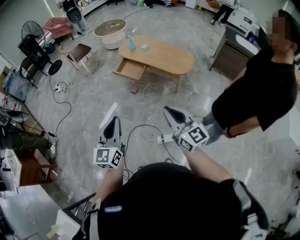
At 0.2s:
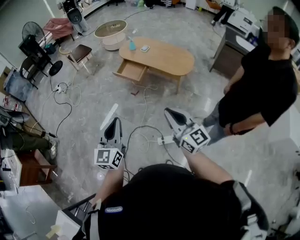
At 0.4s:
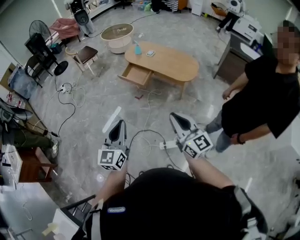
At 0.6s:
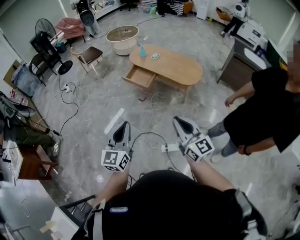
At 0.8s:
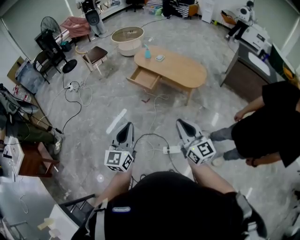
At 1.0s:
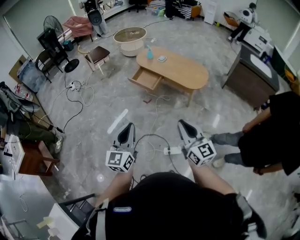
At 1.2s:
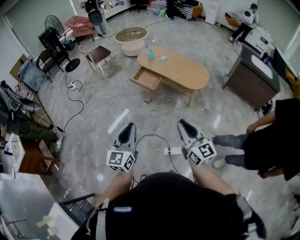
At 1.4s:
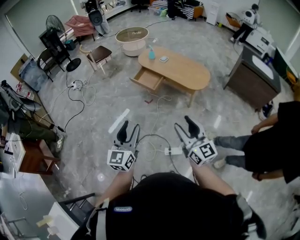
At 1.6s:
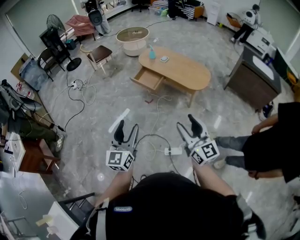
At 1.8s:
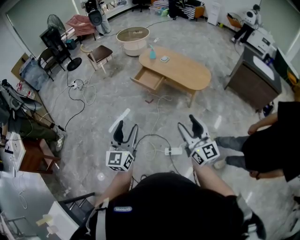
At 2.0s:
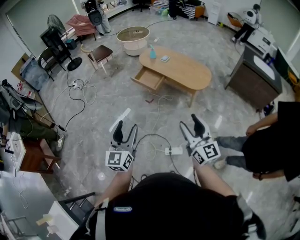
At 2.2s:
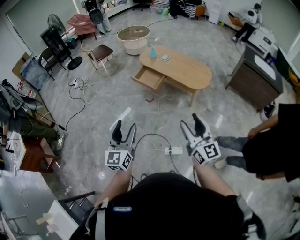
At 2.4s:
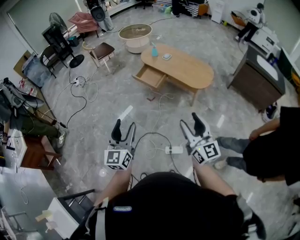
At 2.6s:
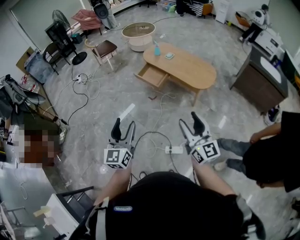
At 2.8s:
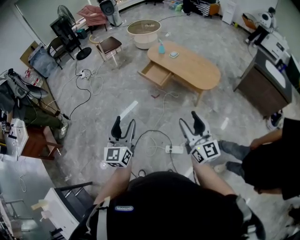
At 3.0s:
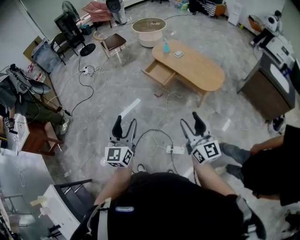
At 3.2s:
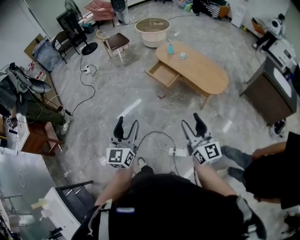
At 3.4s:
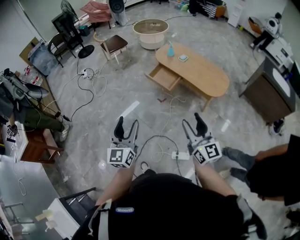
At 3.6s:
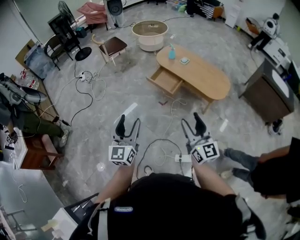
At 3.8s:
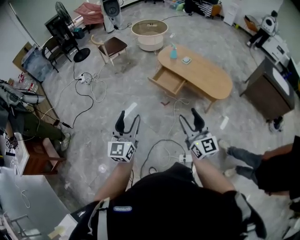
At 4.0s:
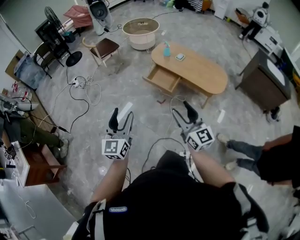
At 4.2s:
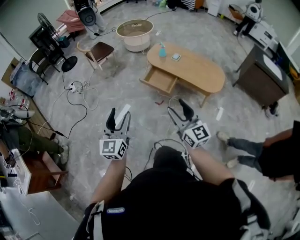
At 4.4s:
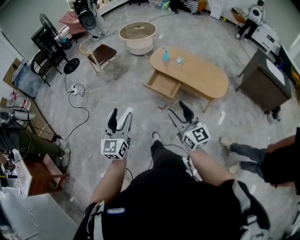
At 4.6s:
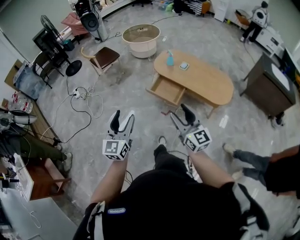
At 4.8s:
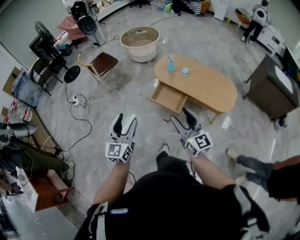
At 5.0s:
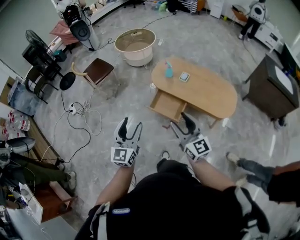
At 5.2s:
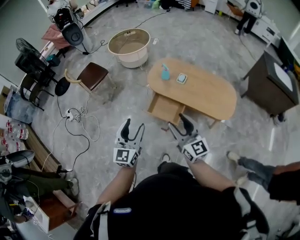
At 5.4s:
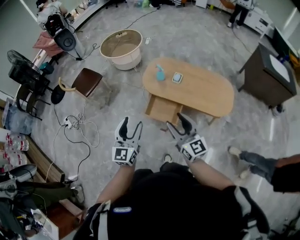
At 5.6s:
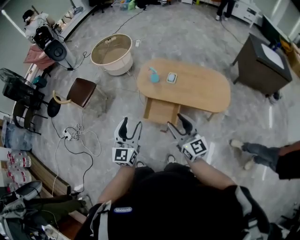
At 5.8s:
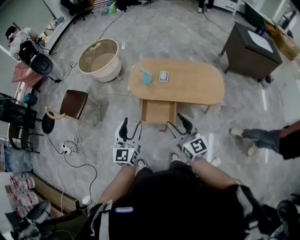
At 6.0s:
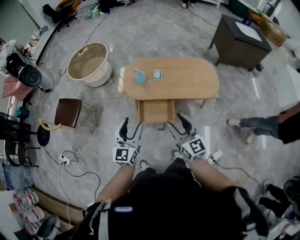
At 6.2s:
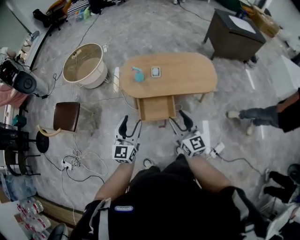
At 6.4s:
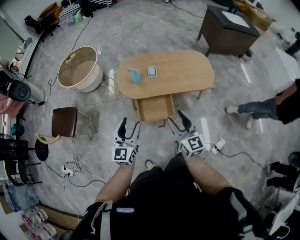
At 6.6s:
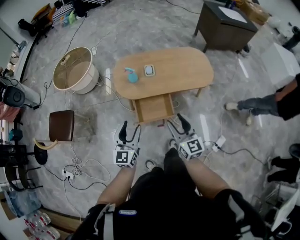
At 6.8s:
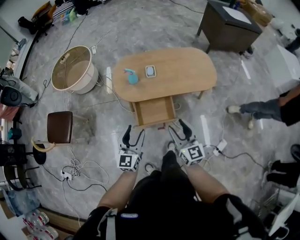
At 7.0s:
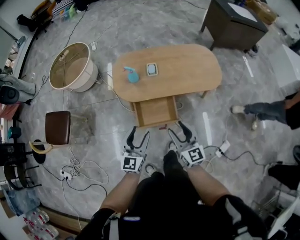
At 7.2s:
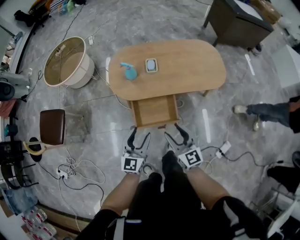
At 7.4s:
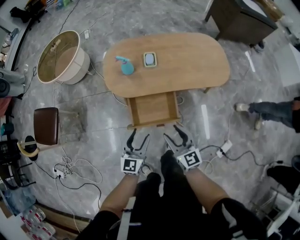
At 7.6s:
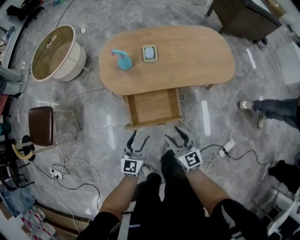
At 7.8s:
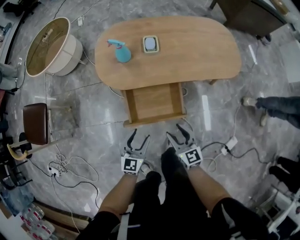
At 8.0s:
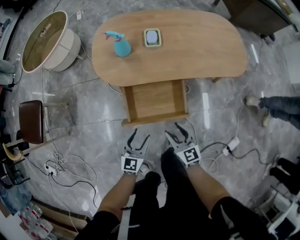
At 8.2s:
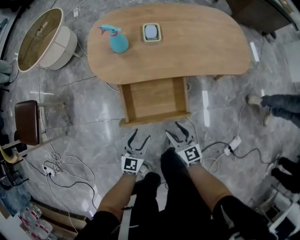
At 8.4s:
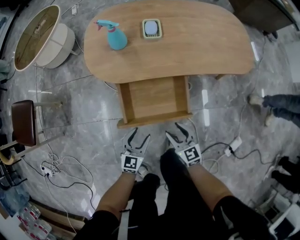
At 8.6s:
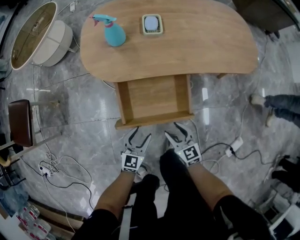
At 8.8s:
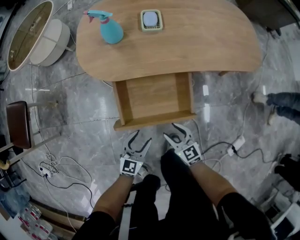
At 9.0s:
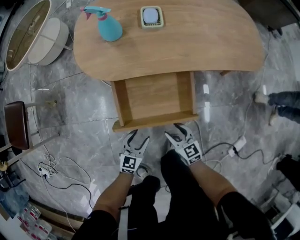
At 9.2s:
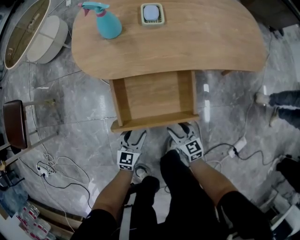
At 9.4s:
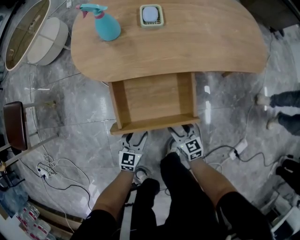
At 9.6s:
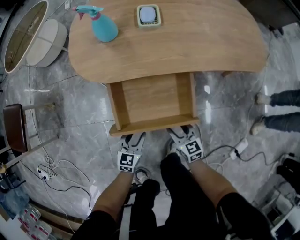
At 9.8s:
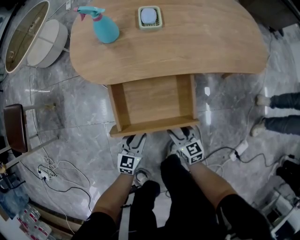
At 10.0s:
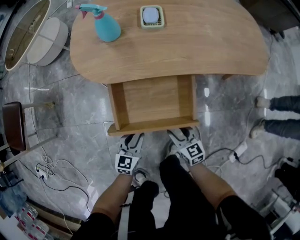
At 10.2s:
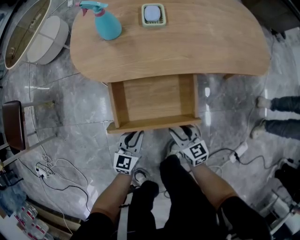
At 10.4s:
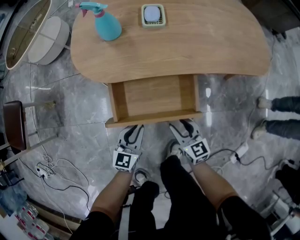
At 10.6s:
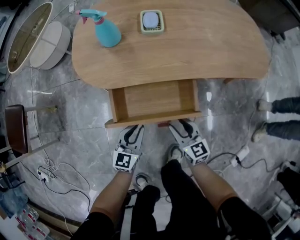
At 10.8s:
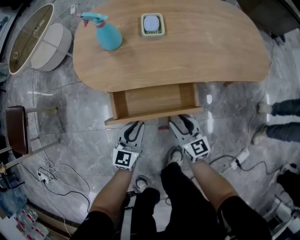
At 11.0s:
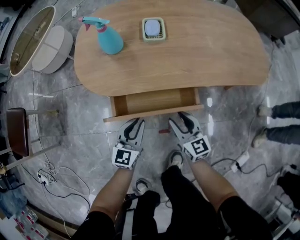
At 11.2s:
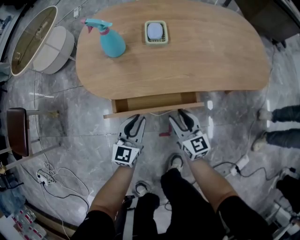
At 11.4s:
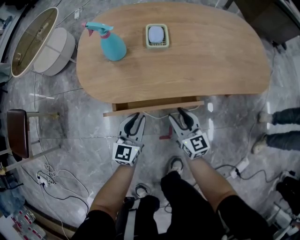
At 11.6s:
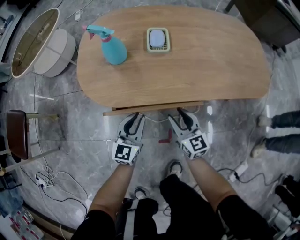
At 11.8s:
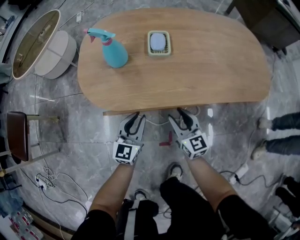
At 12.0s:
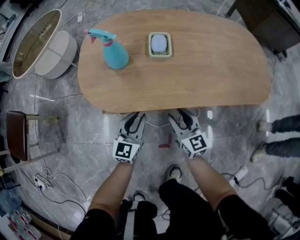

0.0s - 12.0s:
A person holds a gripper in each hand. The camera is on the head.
0.0s - 1.6s: The left gripper opens, while the right gripper opens its fingers.
1.6s - 3.0s: The right gripper shifts by about 5 cm.
3.0s - 4.4s: Both grippers travel together forward and to the left, roughly 35 cm.
4.4s - 6.0s: The right gripper shifts by some 40 cm, and swivels some 30 degrees. The left gripper ends up some 50 cm from where it was, and turns by about 40 degrees.
6.0s - 7.6s: The two grippers go about 35 cm downward.
7.6s - 9.0s: The two grippers go some 30 cm downward.
9.0s - 10.4s: The grippers both shift forward by some 5 cm. The left gripper closes up.
10.4s - 12.0s: The grippers both shift forward by approximately 15 cm.

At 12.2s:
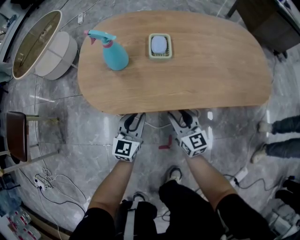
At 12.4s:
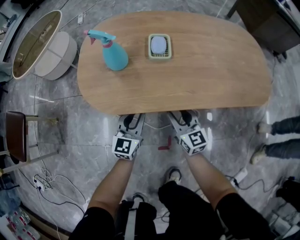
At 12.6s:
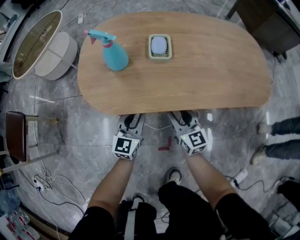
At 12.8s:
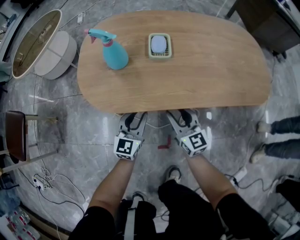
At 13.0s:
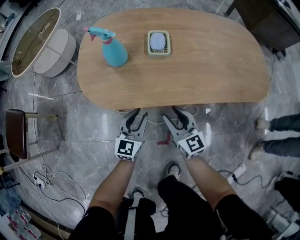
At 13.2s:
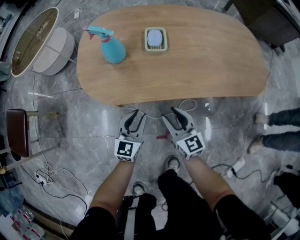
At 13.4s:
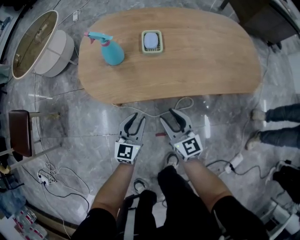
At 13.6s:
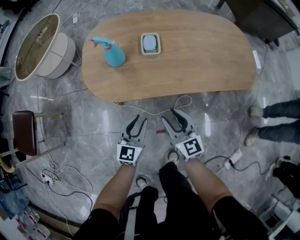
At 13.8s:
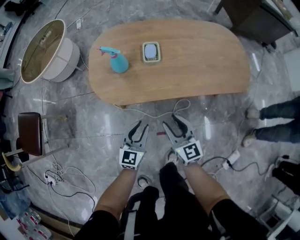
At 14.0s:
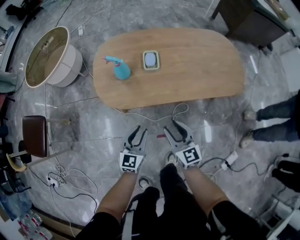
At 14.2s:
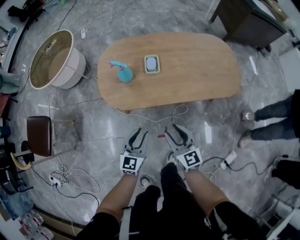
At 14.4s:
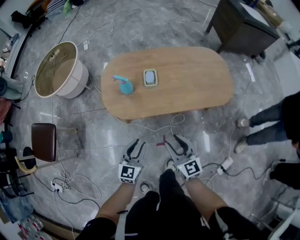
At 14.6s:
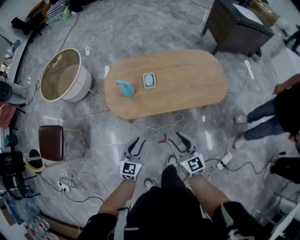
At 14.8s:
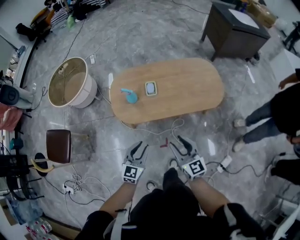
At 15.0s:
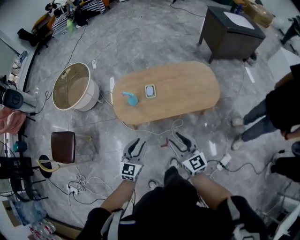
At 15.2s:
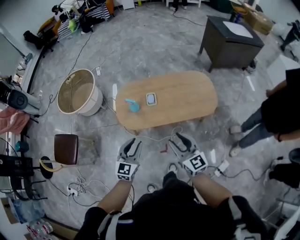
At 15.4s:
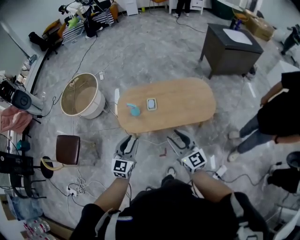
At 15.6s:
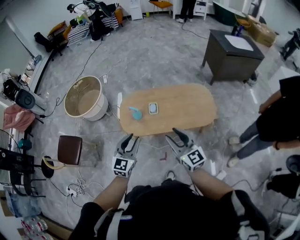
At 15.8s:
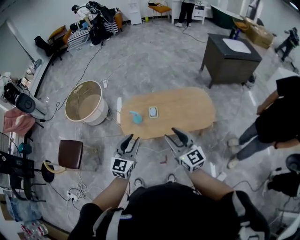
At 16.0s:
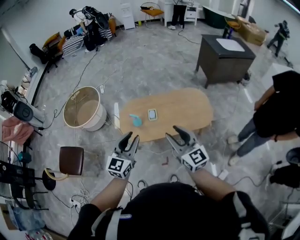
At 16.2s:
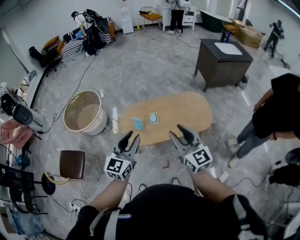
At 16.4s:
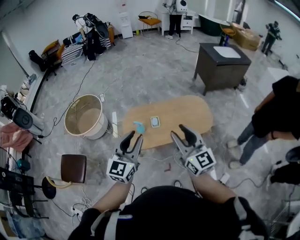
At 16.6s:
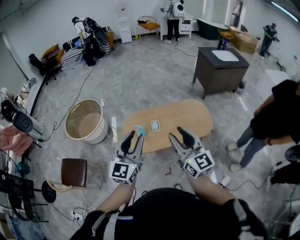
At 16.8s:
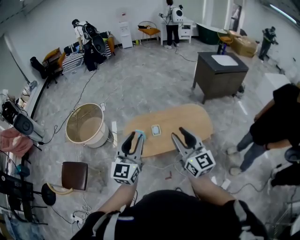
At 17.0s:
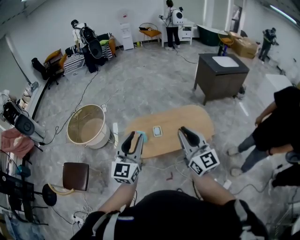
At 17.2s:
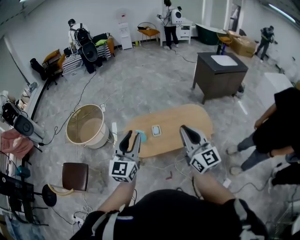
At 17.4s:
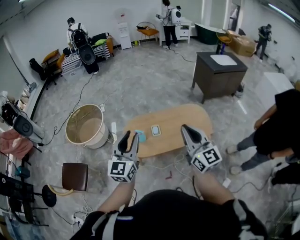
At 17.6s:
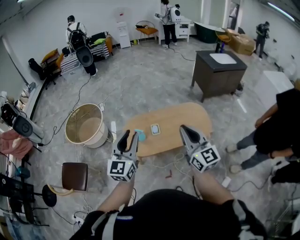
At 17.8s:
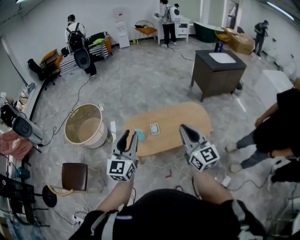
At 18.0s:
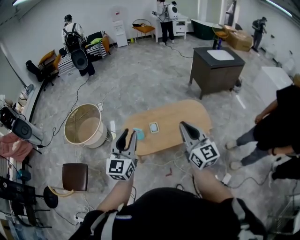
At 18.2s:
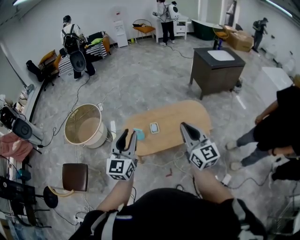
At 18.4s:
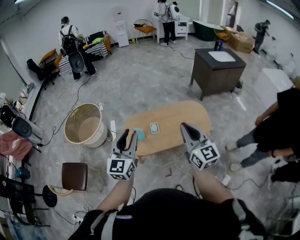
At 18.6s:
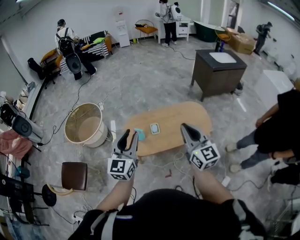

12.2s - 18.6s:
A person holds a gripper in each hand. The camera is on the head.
12.2s - 13.8s: Both grippers travel together upward and backward, roughly 20 cm.
13.8s - 15.4s: The grippers both shift upward by roughly 40 cm.
15.4s - 17.0s: The grippers both shift upward by about 20 cm. The right gripper turns by some 20 degrees, and closes up.
17.0s - 18.6s: The grippers move only a little.

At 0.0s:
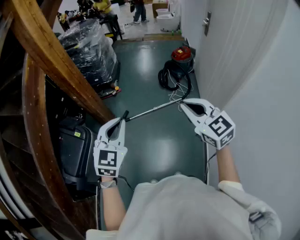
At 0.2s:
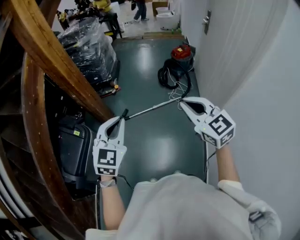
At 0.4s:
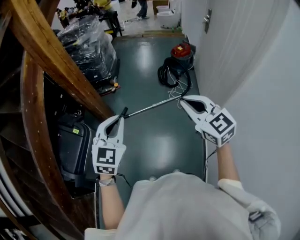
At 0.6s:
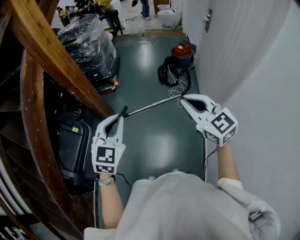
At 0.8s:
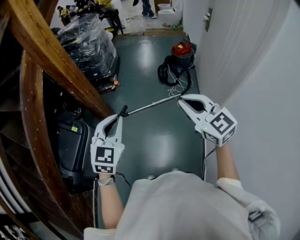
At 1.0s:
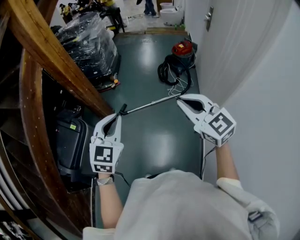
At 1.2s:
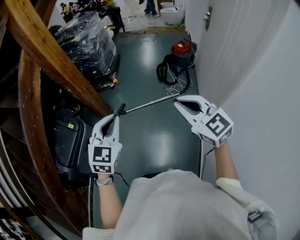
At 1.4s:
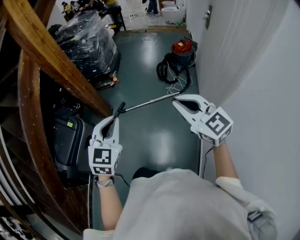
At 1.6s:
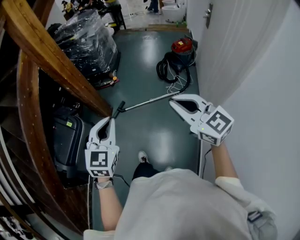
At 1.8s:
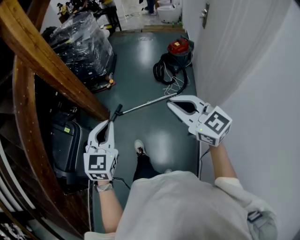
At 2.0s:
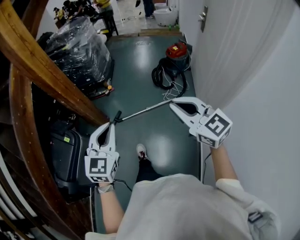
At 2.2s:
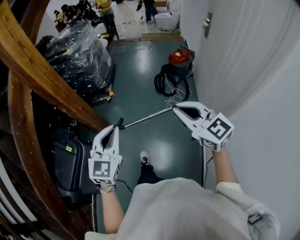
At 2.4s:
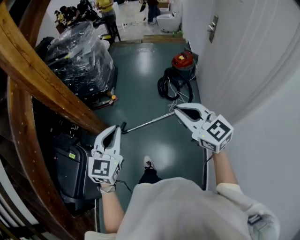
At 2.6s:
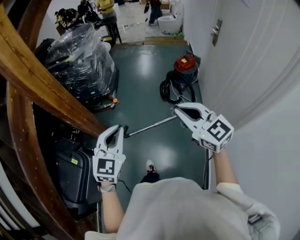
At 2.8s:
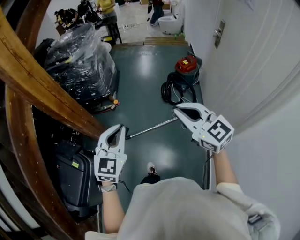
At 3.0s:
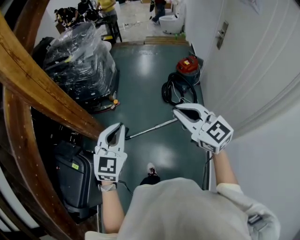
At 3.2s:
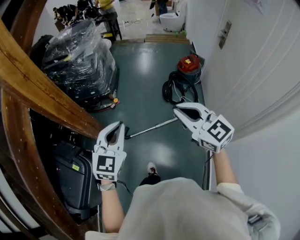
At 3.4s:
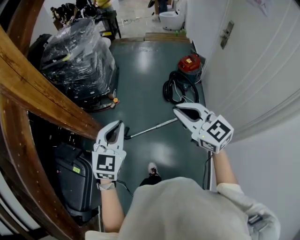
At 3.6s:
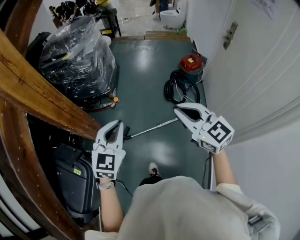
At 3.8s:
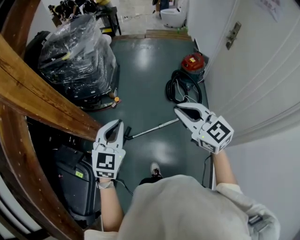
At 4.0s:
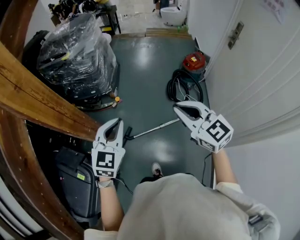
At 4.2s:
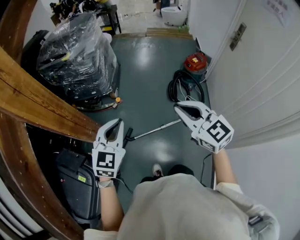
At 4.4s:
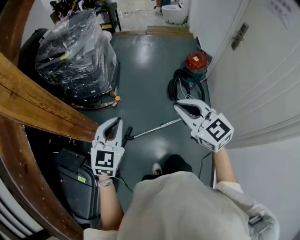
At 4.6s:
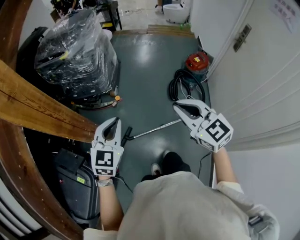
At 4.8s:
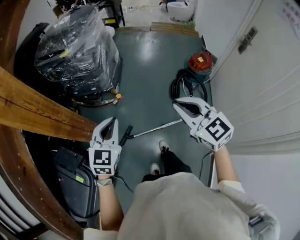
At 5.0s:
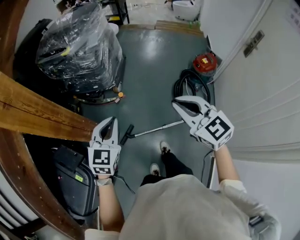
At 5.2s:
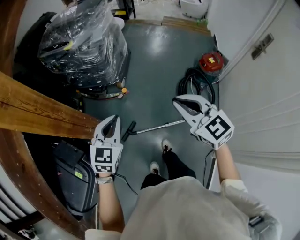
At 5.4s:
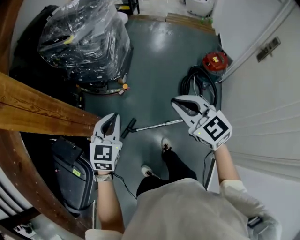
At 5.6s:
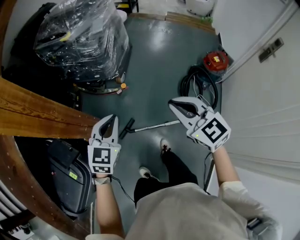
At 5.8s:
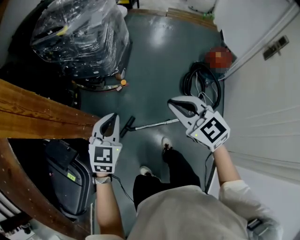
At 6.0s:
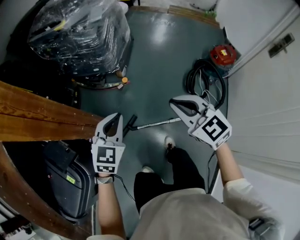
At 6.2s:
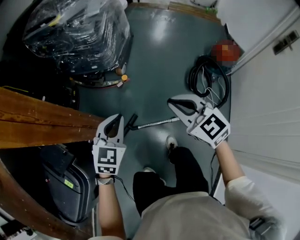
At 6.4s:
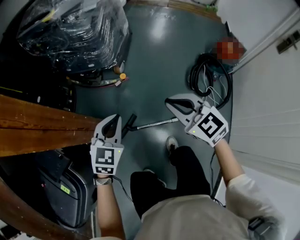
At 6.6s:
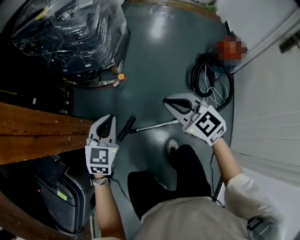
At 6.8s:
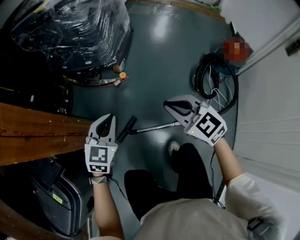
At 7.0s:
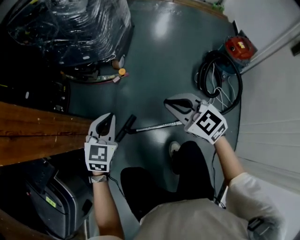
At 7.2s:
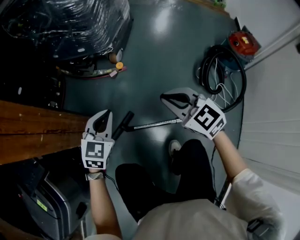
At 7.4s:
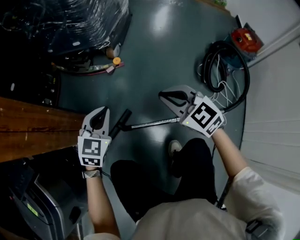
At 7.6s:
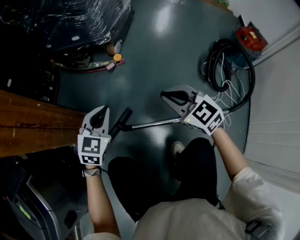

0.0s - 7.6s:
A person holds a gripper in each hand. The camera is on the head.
0.0s - 1.6s: The grippers both shift to the right by approximately 5 cm.
1.6s - 3.0s: Both grippers move forward, approximately 30 cm.
3.0s - 4.6s: Both grippers travel together forward, roughly 20 cm.
4.6s - 6.0s: The grippers both shift downward and forward by about 20 cm.
6.0s - 7.6s: Both grippers travel together downward, about 40 cm.
